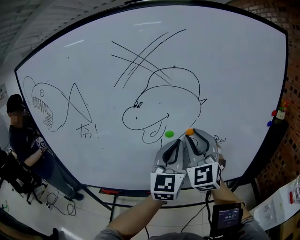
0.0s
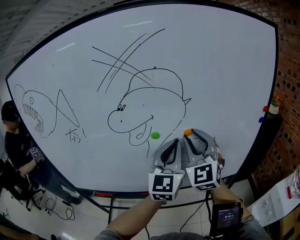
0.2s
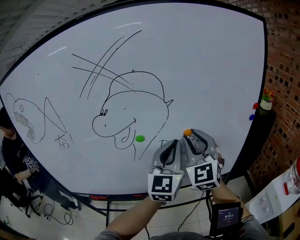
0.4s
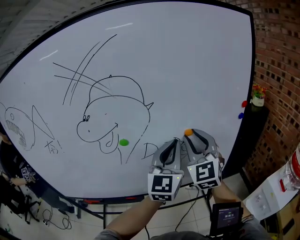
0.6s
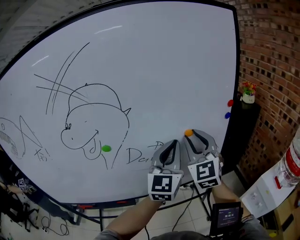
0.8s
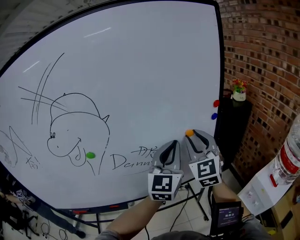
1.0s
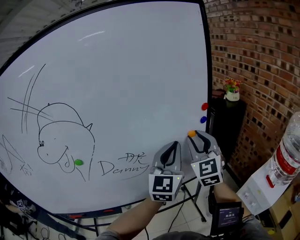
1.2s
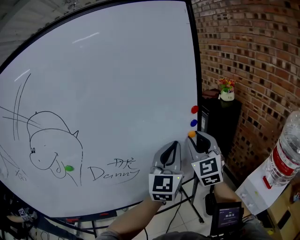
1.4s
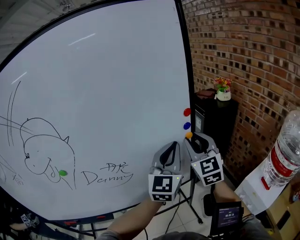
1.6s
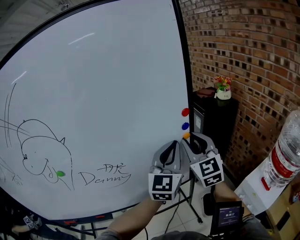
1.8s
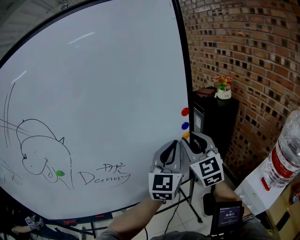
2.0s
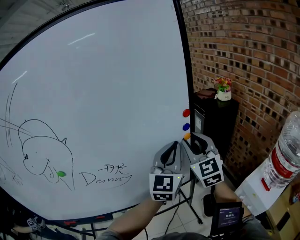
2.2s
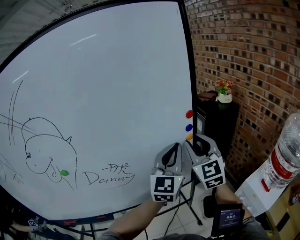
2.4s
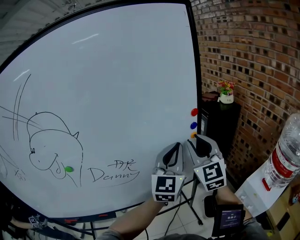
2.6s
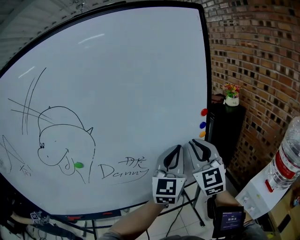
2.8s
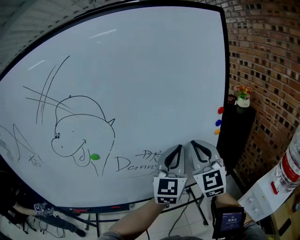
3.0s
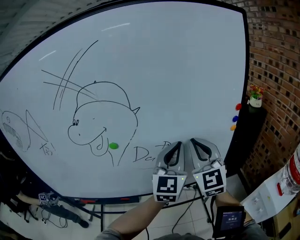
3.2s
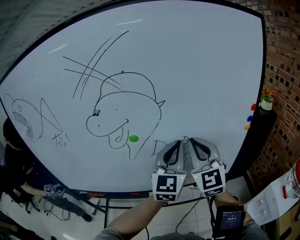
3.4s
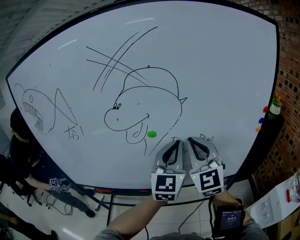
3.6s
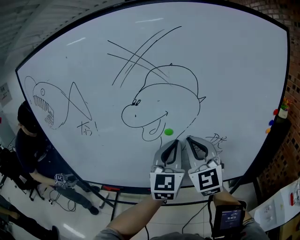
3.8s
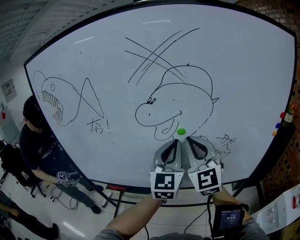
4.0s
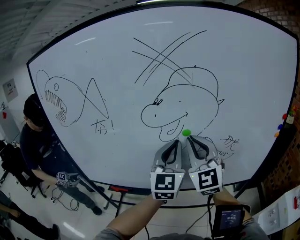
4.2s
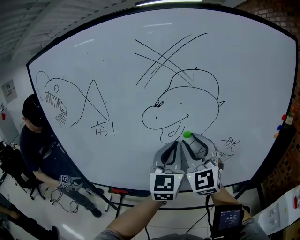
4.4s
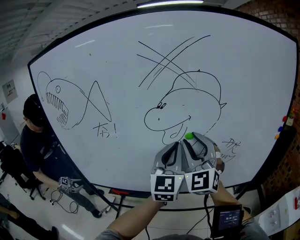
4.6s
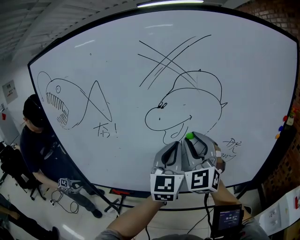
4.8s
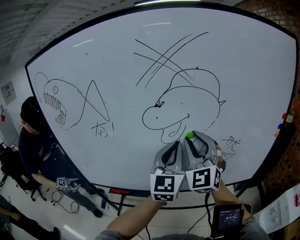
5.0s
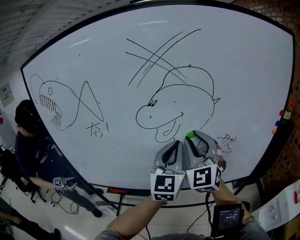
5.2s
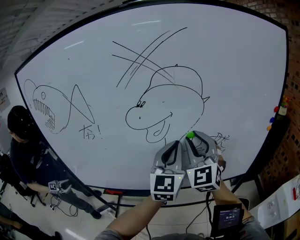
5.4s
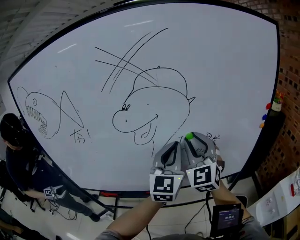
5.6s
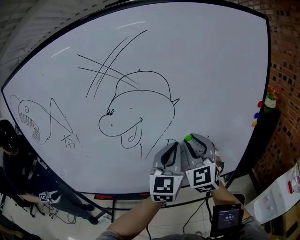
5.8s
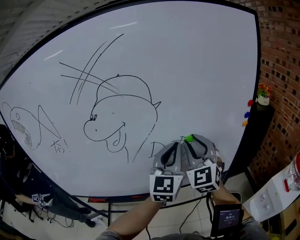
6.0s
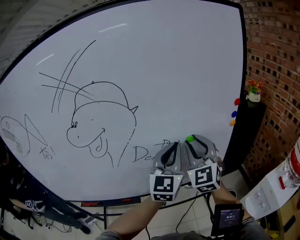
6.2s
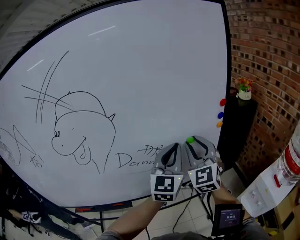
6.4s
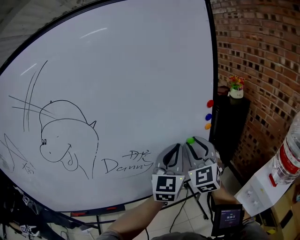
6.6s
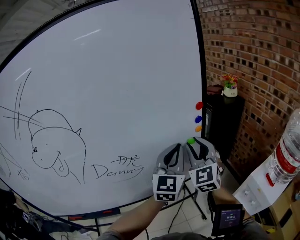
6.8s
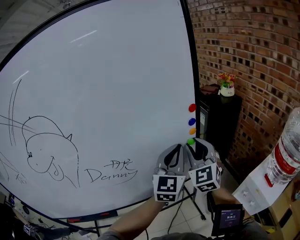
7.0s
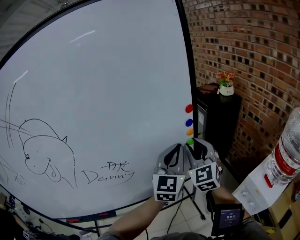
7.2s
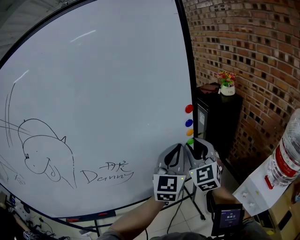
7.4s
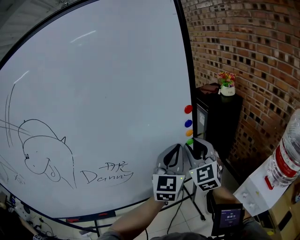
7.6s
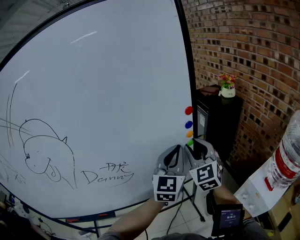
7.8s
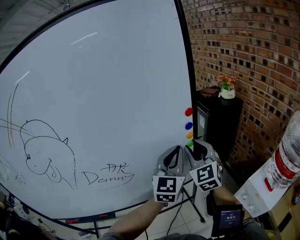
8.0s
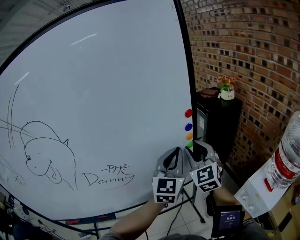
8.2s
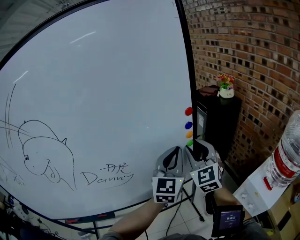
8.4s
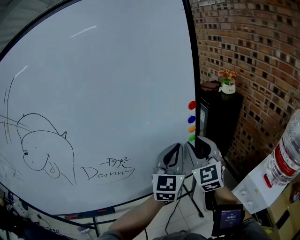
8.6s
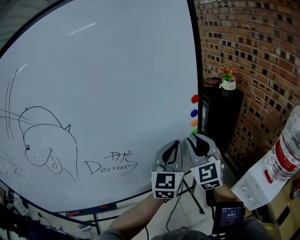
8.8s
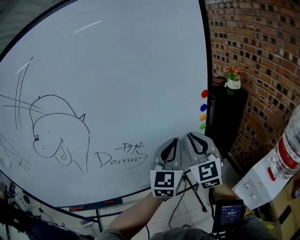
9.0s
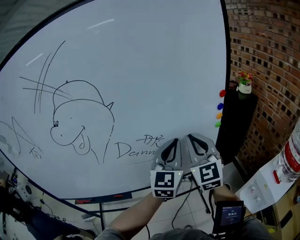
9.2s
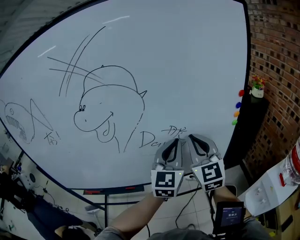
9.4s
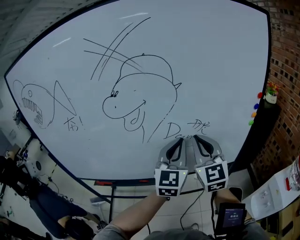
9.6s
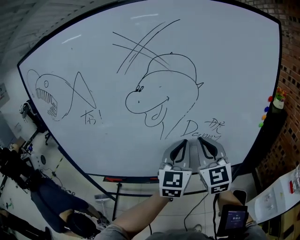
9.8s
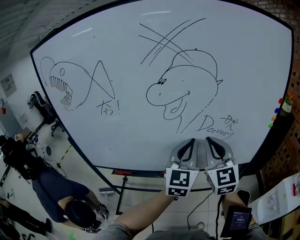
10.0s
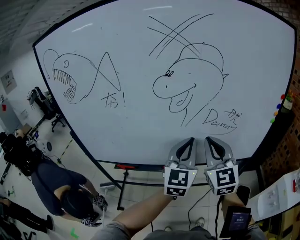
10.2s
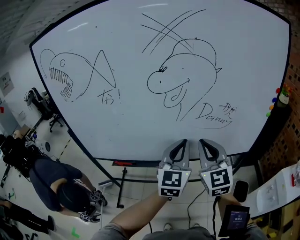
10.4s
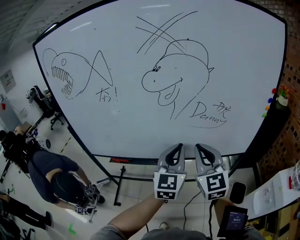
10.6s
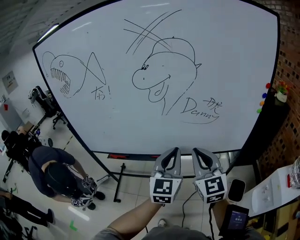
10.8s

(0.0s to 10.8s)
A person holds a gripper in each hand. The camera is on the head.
0.0s - 1.6s: Both grippers travel together to the right, roughly 40 cm. The right gripper turns by roughly 30 degrees. Meanwhile the left gripper changes its angle by roughly 20 degrees.
1.6s - 3.0s: Both grippers travel together to the left and backward, approximately 15 cm. The right gripper closes its fingers.
3.0s - 4.6s: Both grippers travel together to the left, some 35 cm. The right gripper changes its angle by approximately 20 degrees, and opens up; the left gripper turns by approximately 20 degrees.
4.6s - 6.2s: The grippers both shift to the right by some 25 cm.
6.2s - 7.8s: Both grippers travel together to the right and forward, some 20 cm.
7.8s - 9.2s: The grippers both shift to the left and backward by some 15 cm. The right gripper closes up.
9.2s - 10.8s: Both grippers move to the left and backward, about 30 cm. The right gripper turns by roughly 20 degrees.

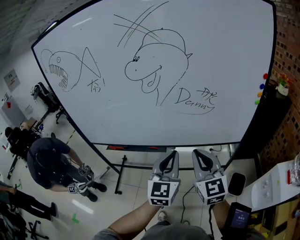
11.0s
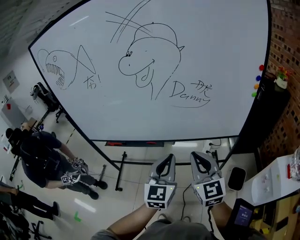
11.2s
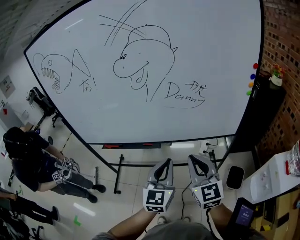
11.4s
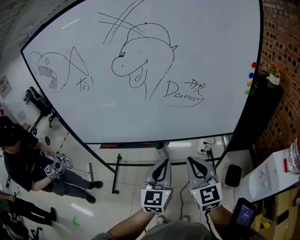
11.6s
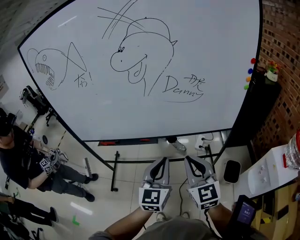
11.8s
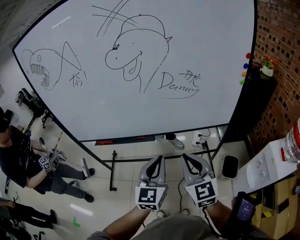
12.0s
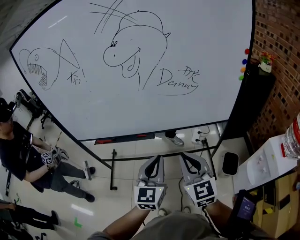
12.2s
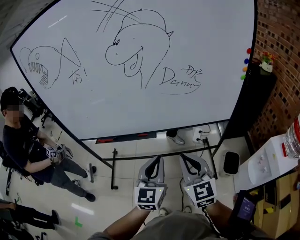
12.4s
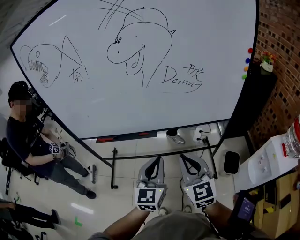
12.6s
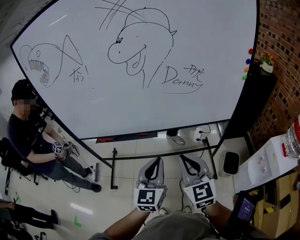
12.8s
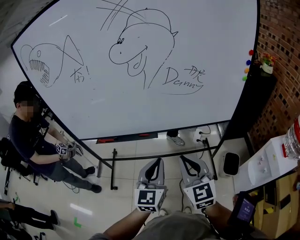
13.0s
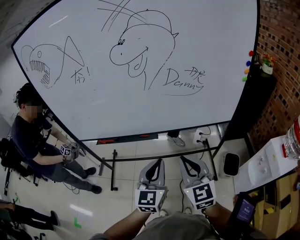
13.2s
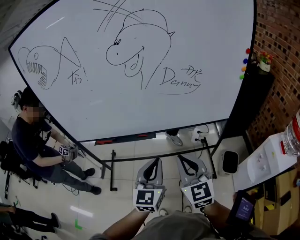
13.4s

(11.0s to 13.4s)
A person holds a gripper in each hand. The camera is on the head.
11.0s - 12.2s: The right gripper shifts about 10 cm backward and downward. The left gripper goes some 10 cm downward and backward.
12.2s - 13.4s: The grippers stay close to where they were, moving slightly.

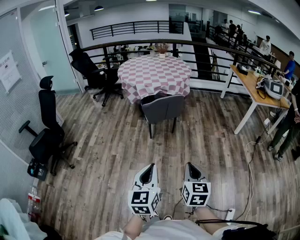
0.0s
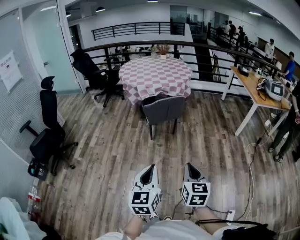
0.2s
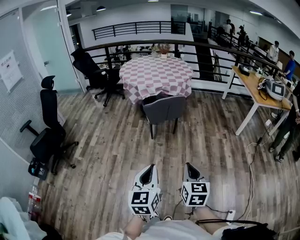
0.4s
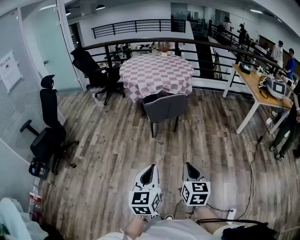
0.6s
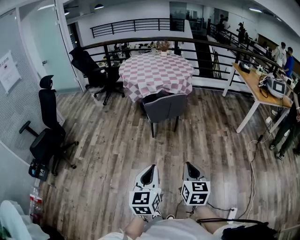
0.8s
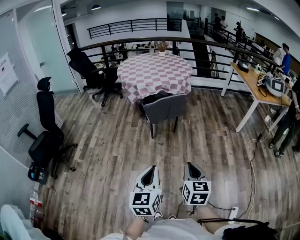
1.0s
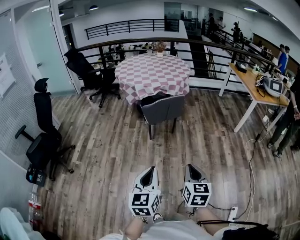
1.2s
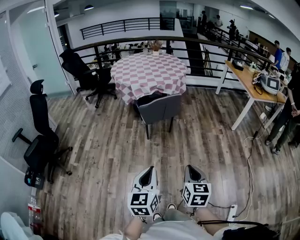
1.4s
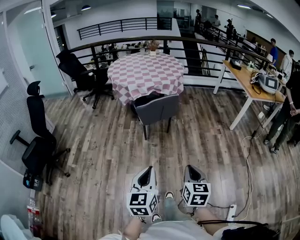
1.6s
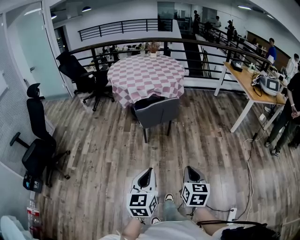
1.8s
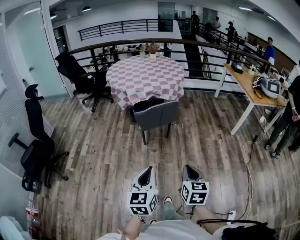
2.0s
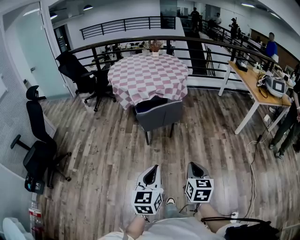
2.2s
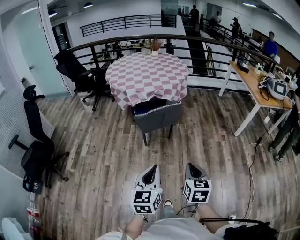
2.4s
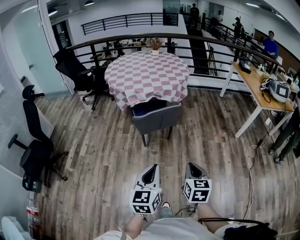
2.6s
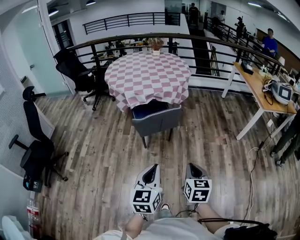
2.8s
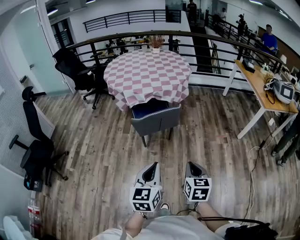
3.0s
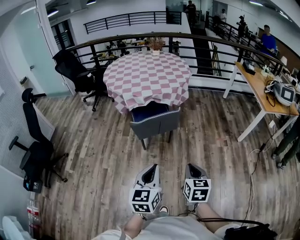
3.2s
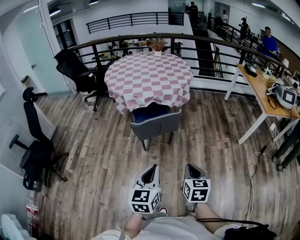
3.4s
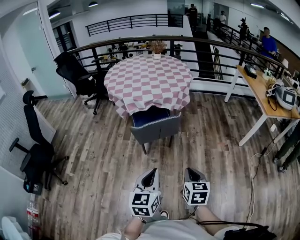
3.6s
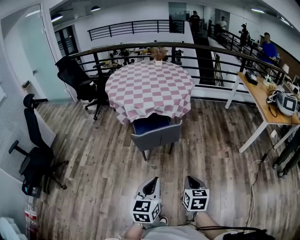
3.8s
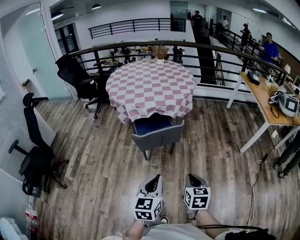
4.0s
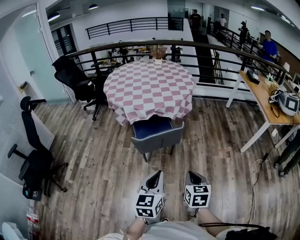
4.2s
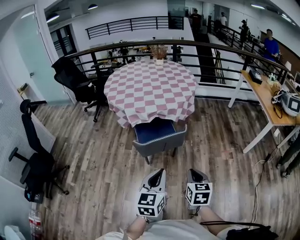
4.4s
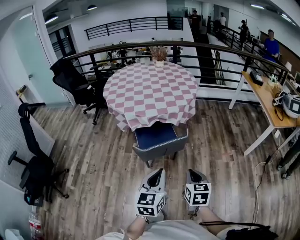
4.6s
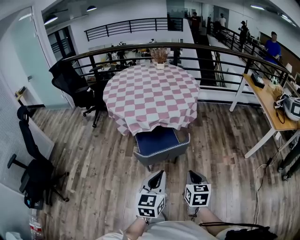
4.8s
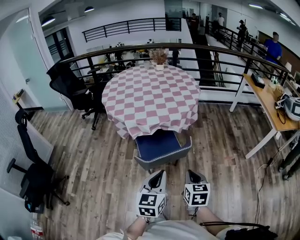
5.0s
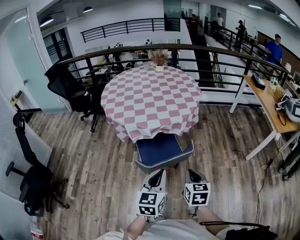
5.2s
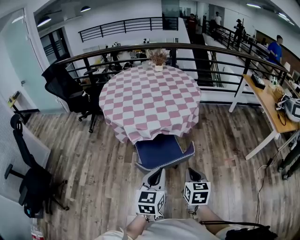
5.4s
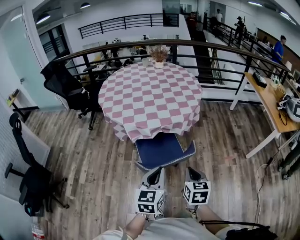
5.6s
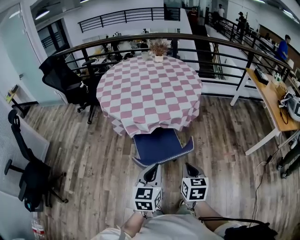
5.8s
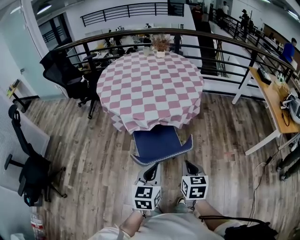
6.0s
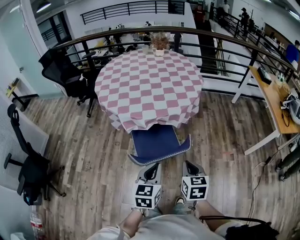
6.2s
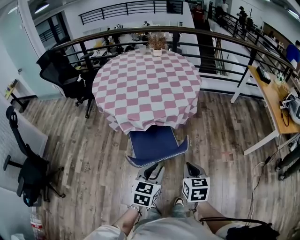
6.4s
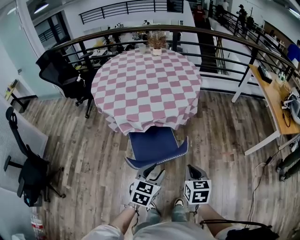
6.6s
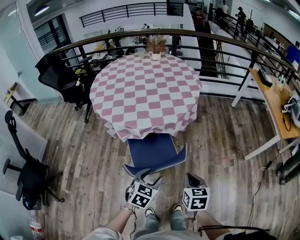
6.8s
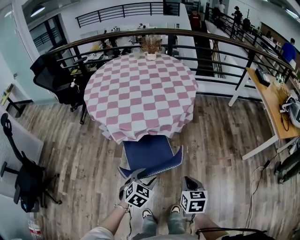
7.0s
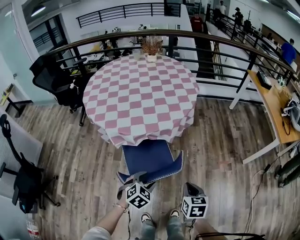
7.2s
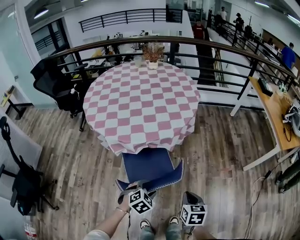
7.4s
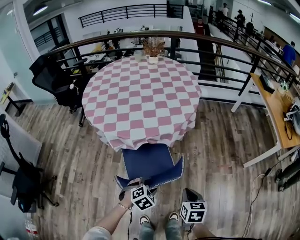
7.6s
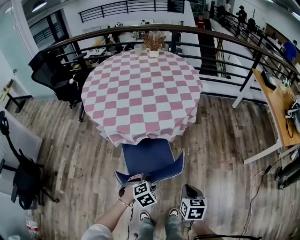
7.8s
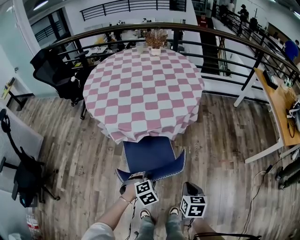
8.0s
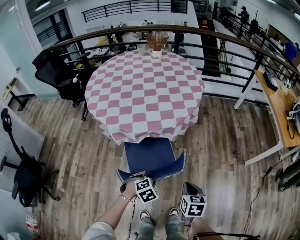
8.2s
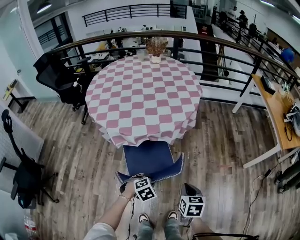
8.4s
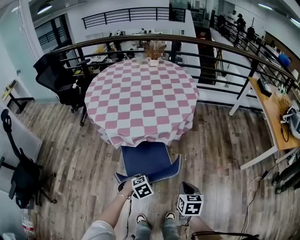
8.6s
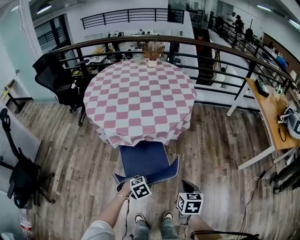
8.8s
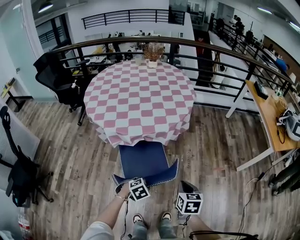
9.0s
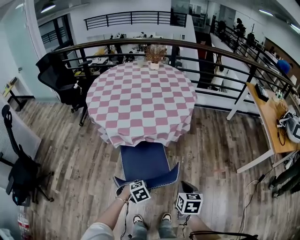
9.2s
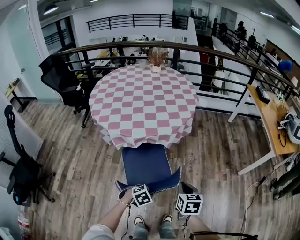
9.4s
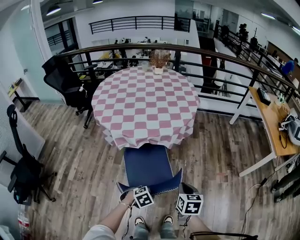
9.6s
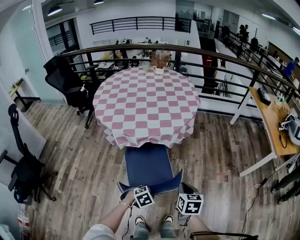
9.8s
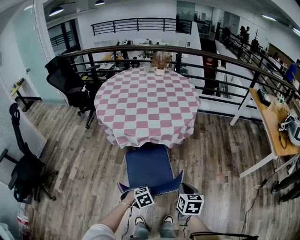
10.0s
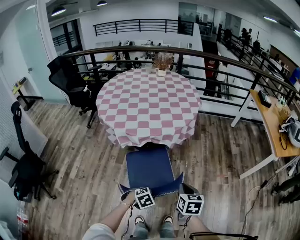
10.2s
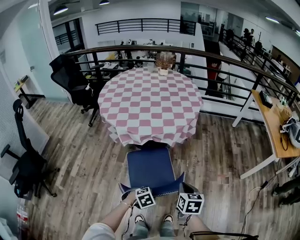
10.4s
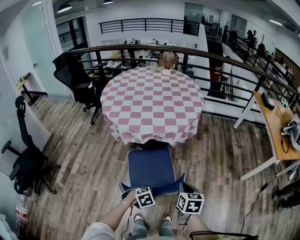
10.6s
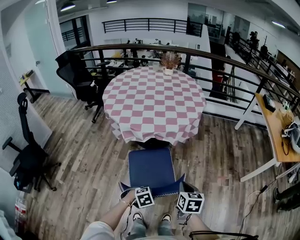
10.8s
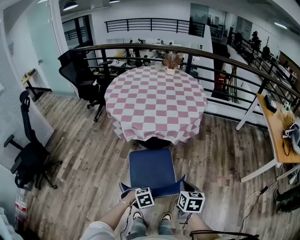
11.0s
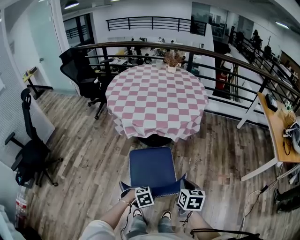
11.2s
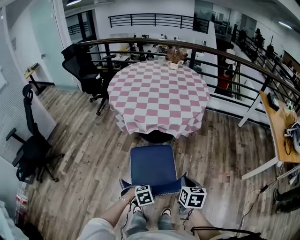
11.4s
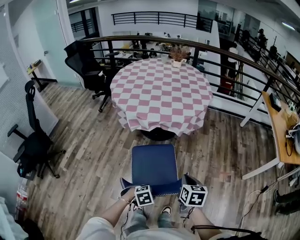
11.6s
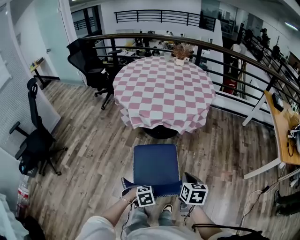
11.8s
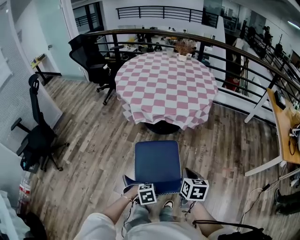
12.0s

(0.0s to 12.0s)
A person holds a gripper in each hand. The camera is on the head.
0.0s - 1.6s: The right gripper ends up roughly 5 cm from where it was; the left gripper is displaced forward by roughly 5 cm.
1.6s - 3.0s: The grippers both shift forward by some 25 cm.
3.0s - 4.4s: Both grippers move forward, some 15 cm.
4.4s - 6.0s: The two grippers go some 20 cm forward.
6.0s - 7.6s: The left gripper is displaced downward and forward by approximately 20 cm, points its fingers roughly 40 degrees further downward, and opens. The right gripper moves downward, to the right and forward, approximately 15 cm.
7.6s - 9.0s: The left gripper shifts by approximately 5 cm, and closes up.
9.0s - 10.4s: The left gripper is displaced backward and to the right by approximately 10 cm.
10.4s - 12.0s: The left gripper shifts roughly 10 cm backward and to the right.
